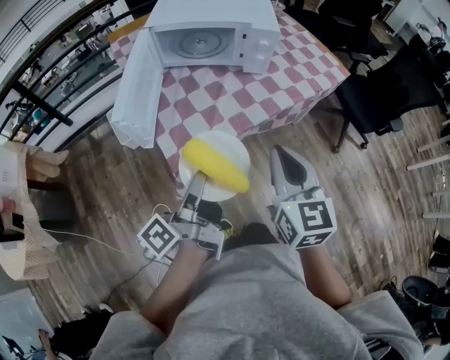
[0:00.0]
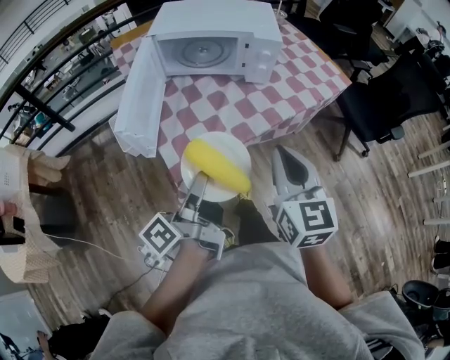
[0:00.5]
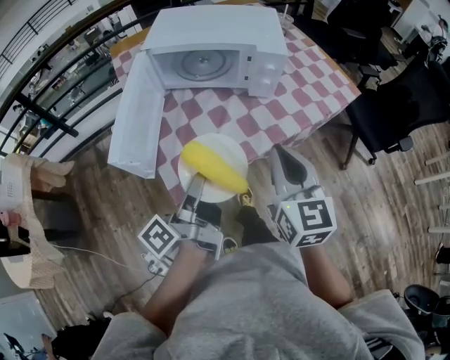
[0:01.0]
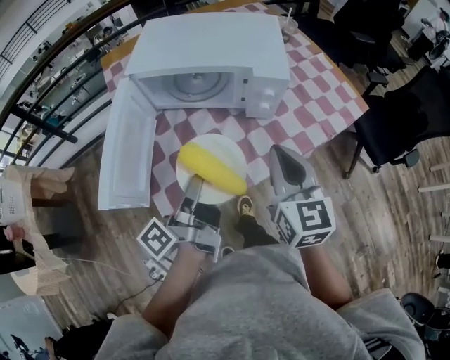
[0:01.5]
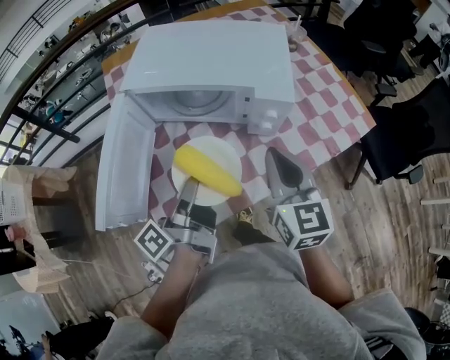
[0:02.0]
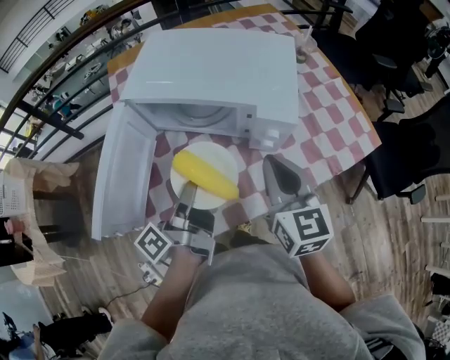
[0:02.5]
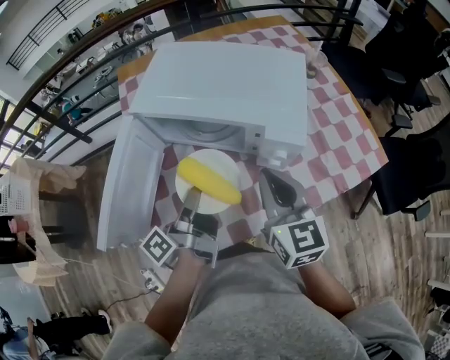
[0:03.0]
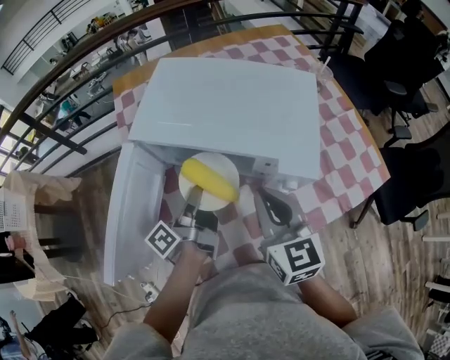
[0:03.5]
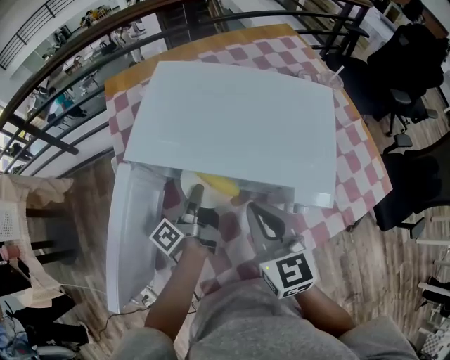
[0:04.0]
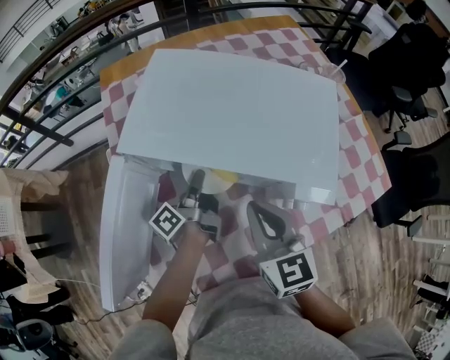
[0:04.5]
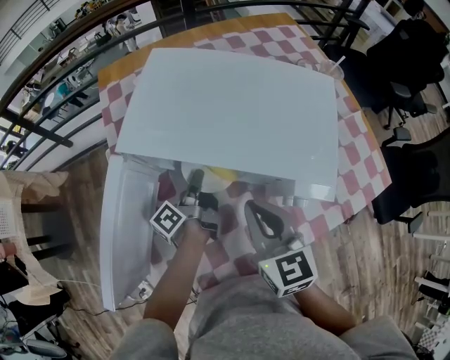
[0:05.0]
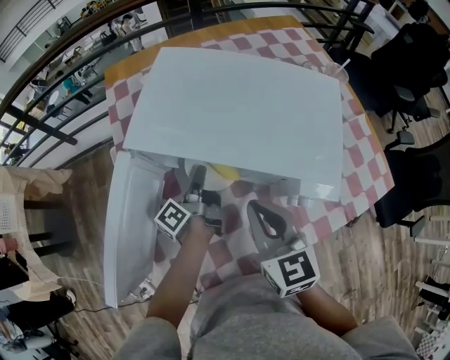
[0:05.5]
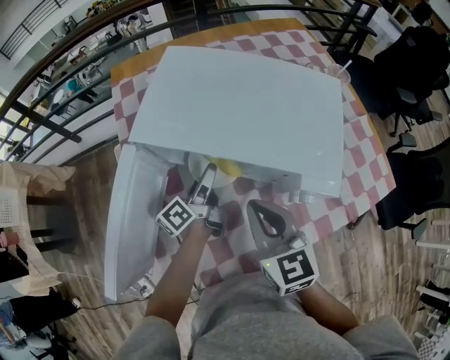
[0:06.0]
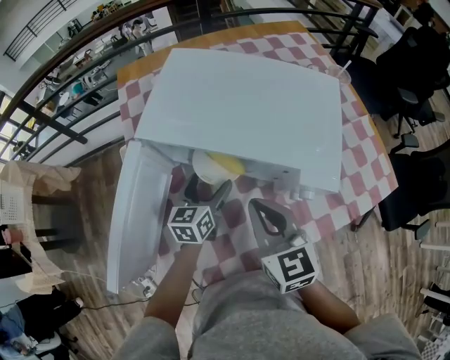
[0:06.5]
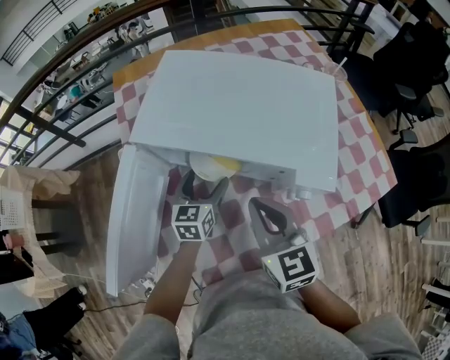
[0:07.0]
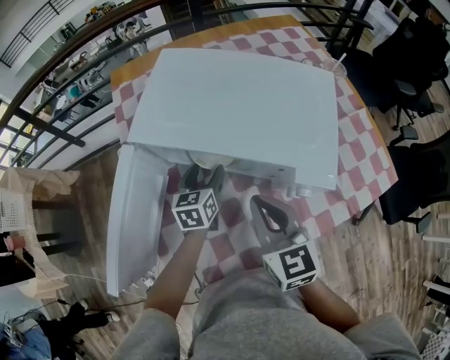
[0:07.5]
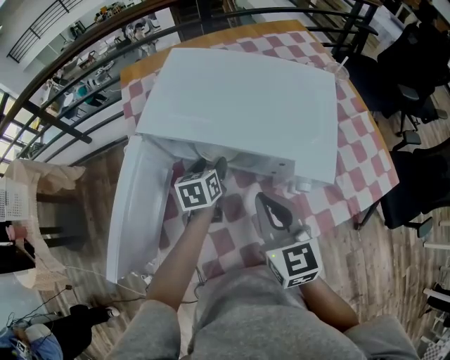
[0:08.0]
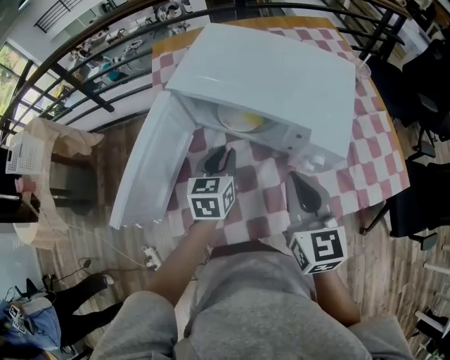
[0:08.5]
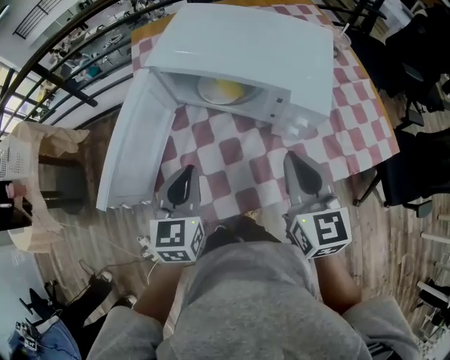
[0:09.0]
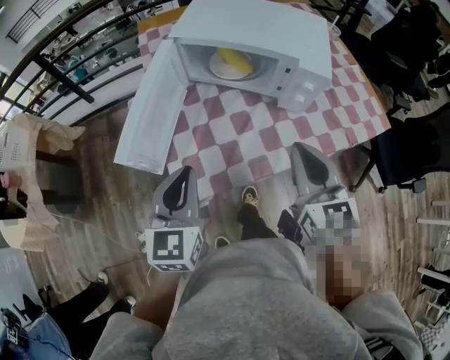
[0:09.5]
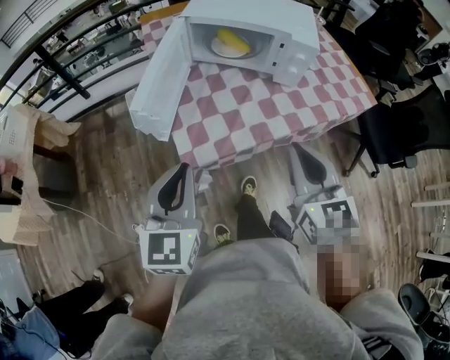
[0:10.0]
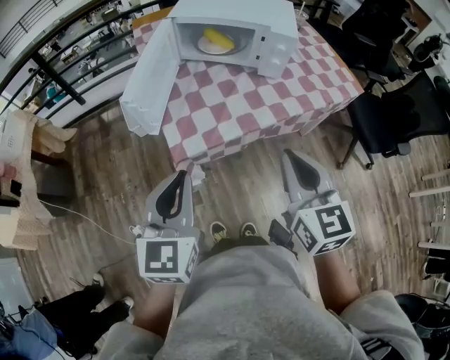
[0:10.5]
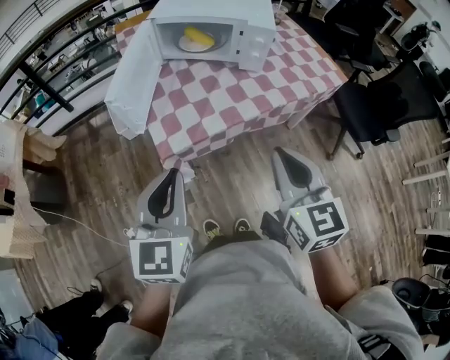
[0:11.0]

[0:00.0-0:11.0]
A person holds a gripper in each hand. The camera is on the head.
0:00.0 to 0:02.0: The grippers both shift forward by about 30 cm.
0:02.0 to 0:03.5: The right gripper travels forward and to the left by some 10 cm, while the left gripper heads forward and downward, covering roughly 15 cm.
0:03.5 to 0:05.5: The right gripper ends up approximately 5 cm from where it was. Meanwhile the left gripper goes about 10 cm forward and downward.
0:05.5 to 0:07.5: The left gripper rolls clockwise, seen from behind, by roughly 70 degrees, and opens up.
0:07.5 to 0:09.0: The left gripper moves backward and upward, roughly 25 cm, and closes its fingers. The right gripper shifts about 10 cm backward and to the right.
0:09.0 to 0:11.0: The two grippers go roughly 35 cm backward.

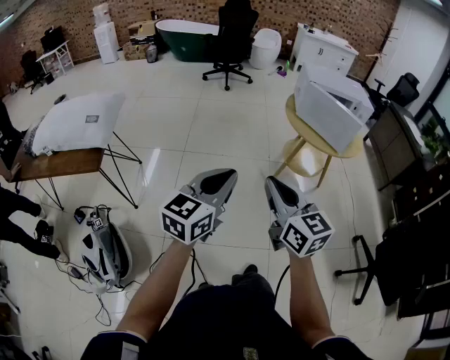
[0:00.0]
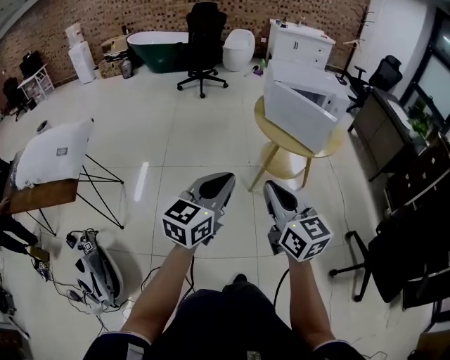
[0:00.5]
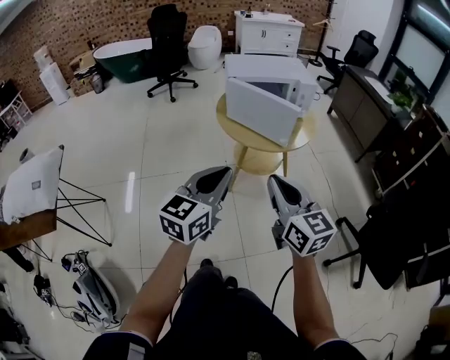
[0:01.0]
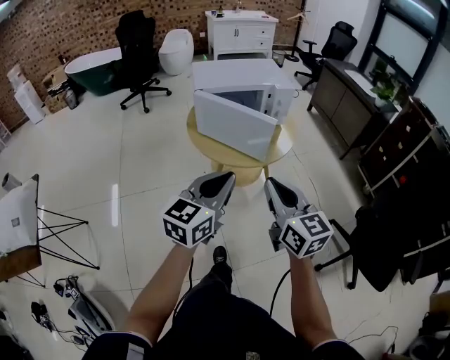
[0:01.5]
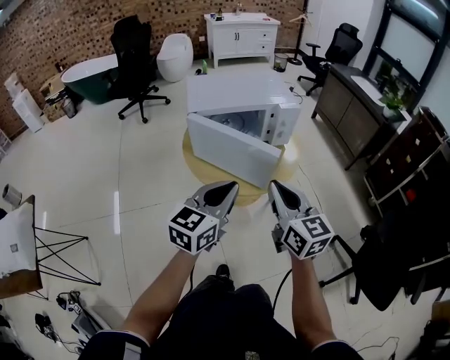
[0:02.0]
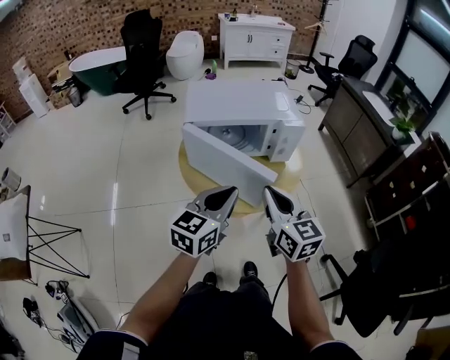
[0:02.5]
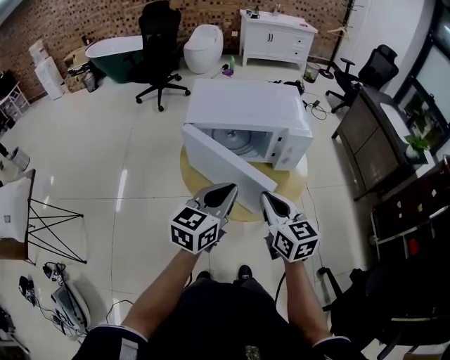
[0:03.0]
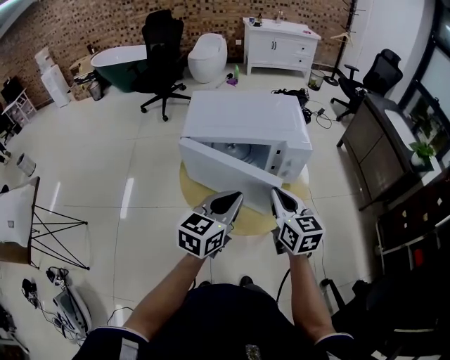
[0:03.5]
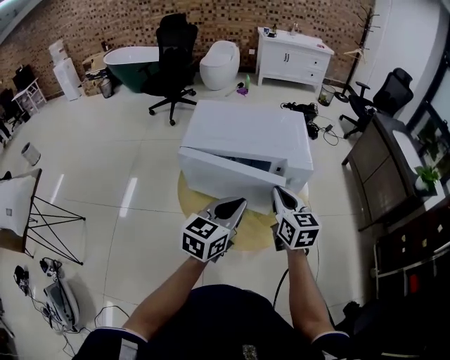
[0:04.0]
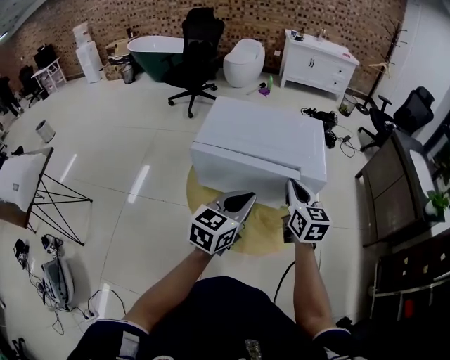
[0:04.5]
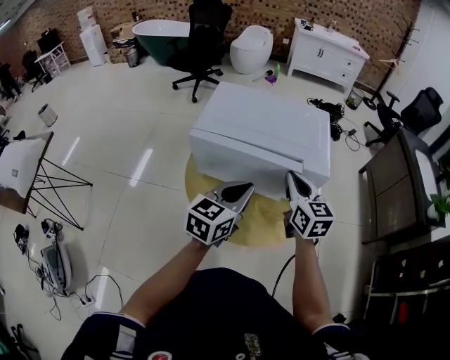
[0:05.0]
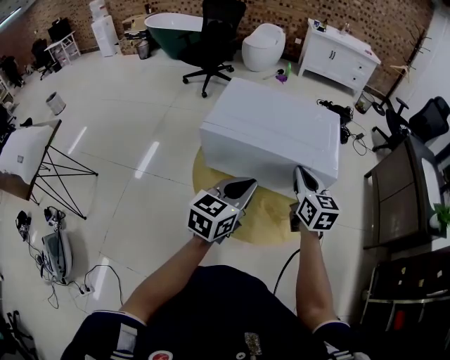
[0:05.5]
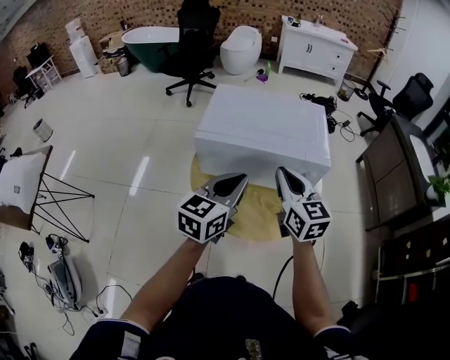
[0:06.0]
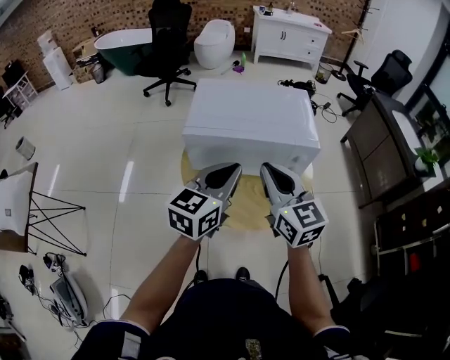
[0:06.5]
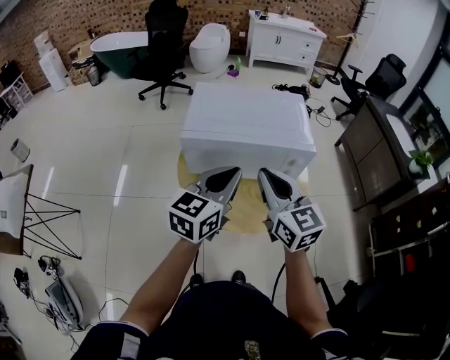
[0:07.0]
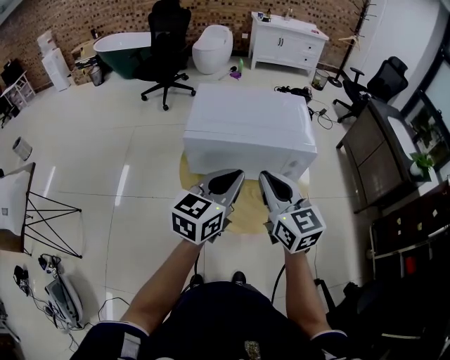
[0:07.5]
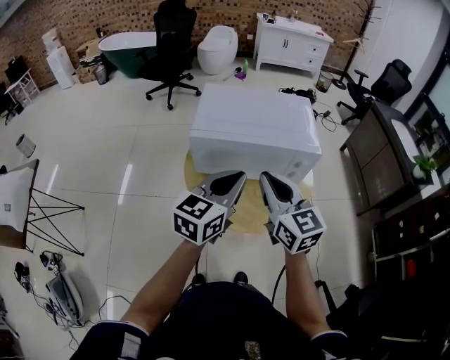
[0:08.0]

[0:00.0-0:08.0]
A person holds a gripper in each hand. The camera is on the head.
0:00.0 to 0:02.0: Both grippers are carried forward and to the right, approximately 50 cm. The right gripper swivels roughly 20 degrees.
0:02.0 to 0:04.0: The right gripper shifts roughly 25 cm forward; the left gripper is displaced forward and to the right by some 20 cm.
0:04.0 to 0:06.0: The right gripper goes approximately 5 cm to the left and upward, while the left gripper ends up approximately 5 cm from where it was.
0:06.0 to 0:08.0: The right gripper moves backward, approximately 5 cm.

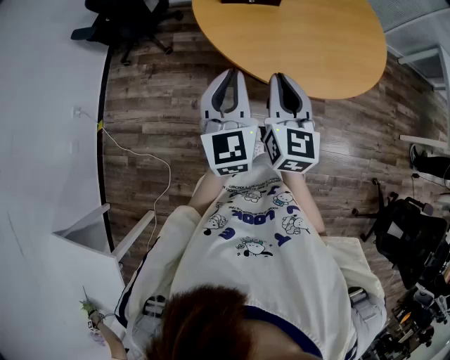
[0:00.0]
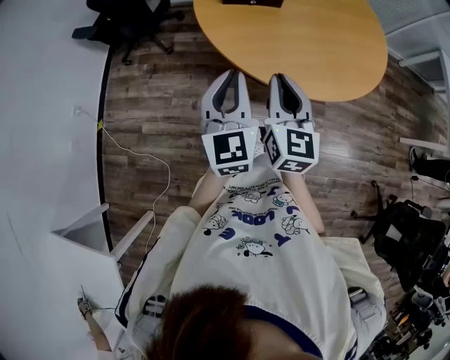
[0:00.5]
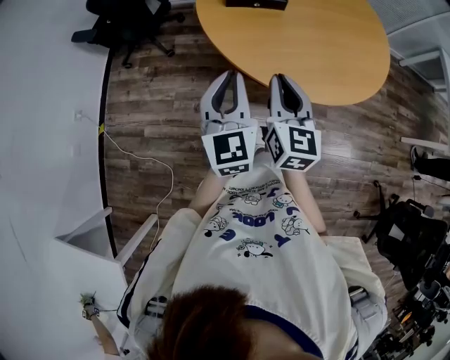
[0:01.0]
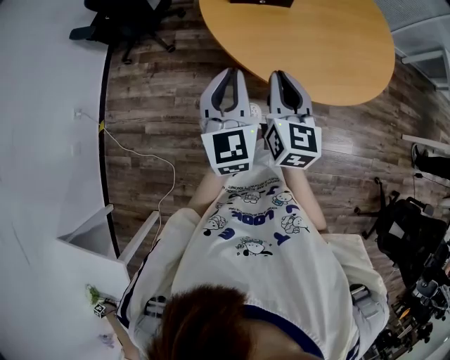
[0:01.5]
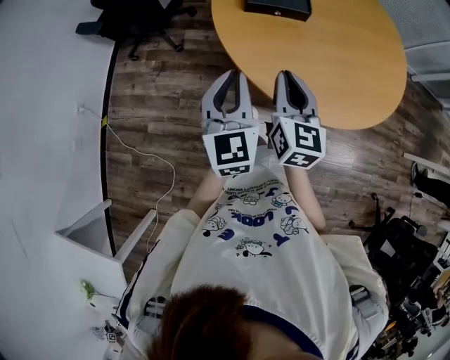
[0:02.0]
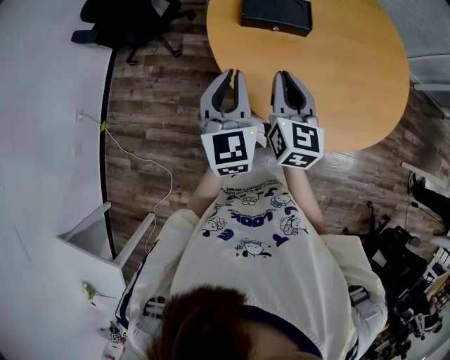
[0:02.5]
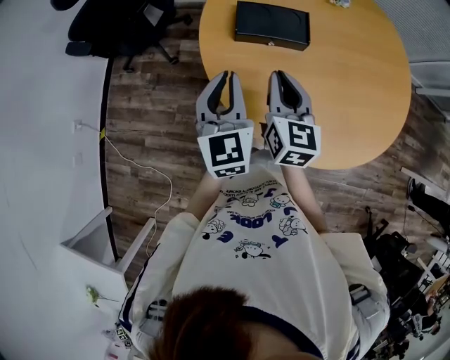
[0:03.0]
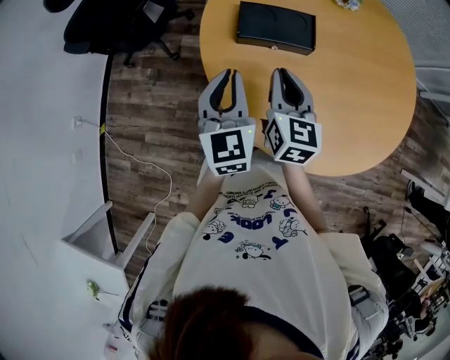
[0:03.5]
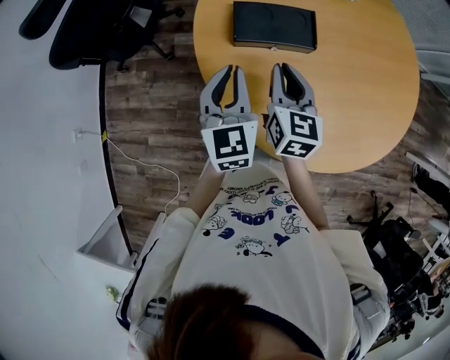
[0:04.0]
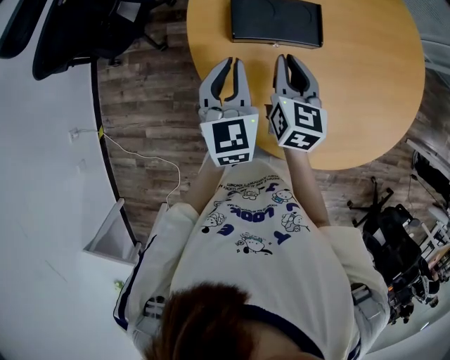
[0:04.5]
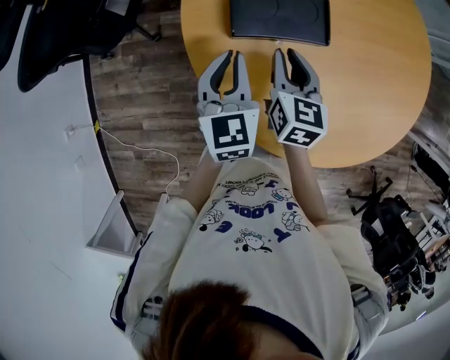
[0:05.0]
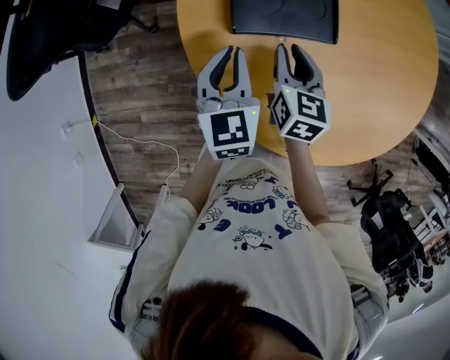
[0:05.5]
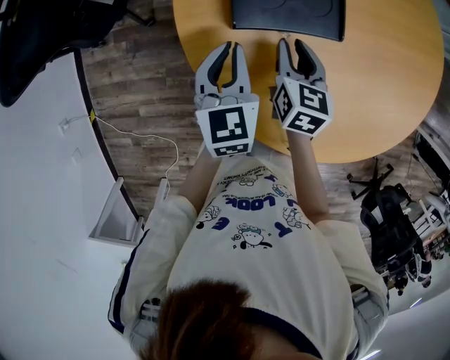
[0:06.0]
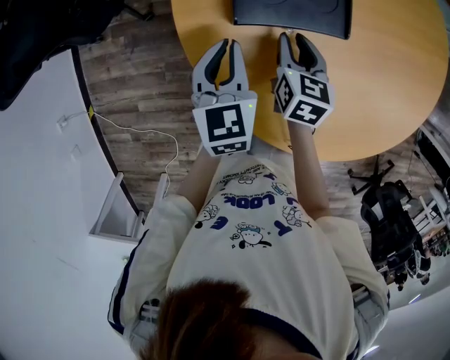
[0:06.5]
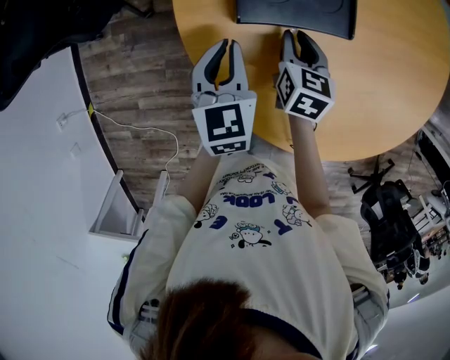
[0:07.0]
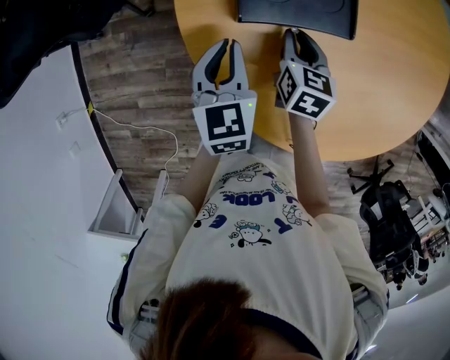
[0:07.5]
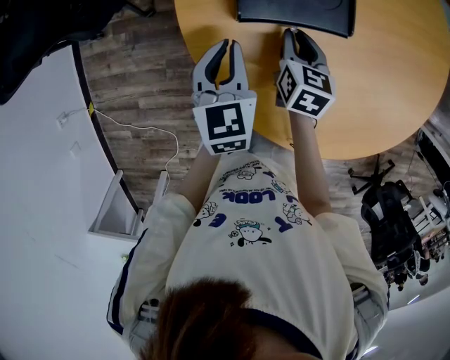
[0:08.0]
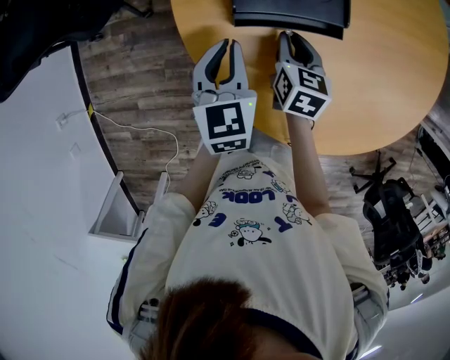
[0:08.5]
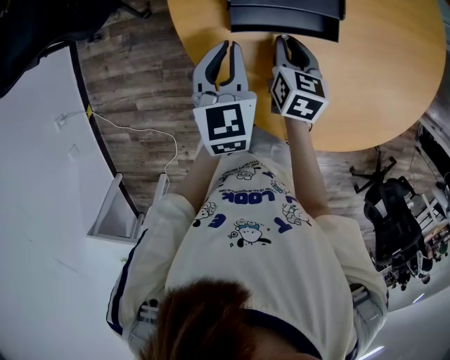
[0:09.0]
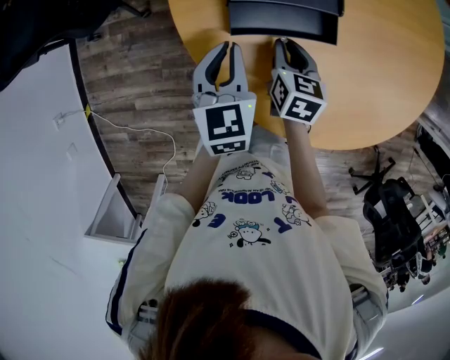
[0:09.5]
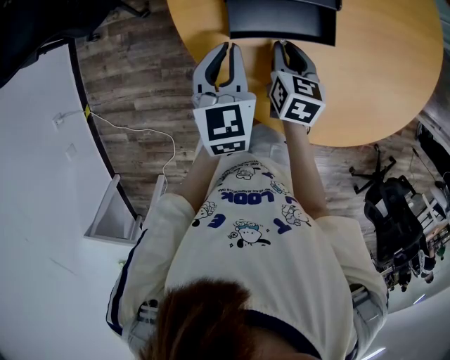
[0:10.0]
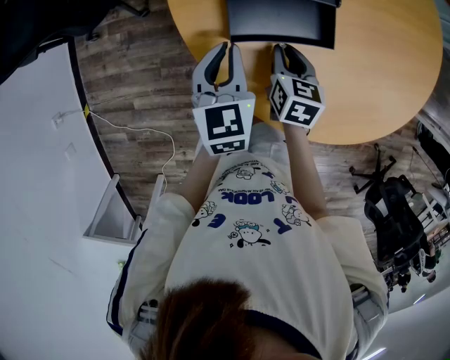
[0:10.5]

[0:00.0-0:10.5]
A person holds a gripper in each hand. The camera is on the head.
0:00.0 to 0:02.0: Both grippers travel together forward, roughly 10 cm.
0:02.0 to 0:04.0: Both grippers move forward, some 25 cm.
0:04.0 to 0:06.5: Both grippers move downward and forward, roughly 15 cm. The right gripper opens.
0:06.5 to 0:08.5: The grippers make only small movements.
0:08.5 to 0:10.5: Both grippers travel together backward, approximately 5 cm.
